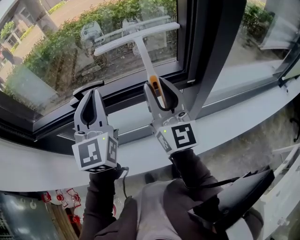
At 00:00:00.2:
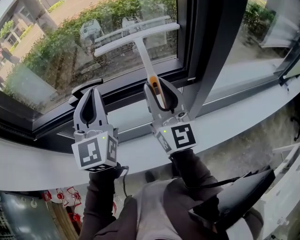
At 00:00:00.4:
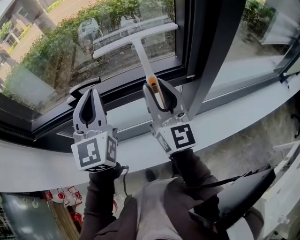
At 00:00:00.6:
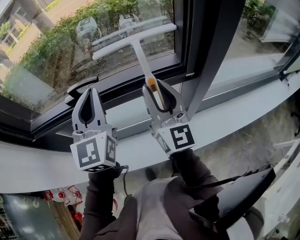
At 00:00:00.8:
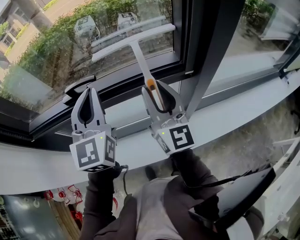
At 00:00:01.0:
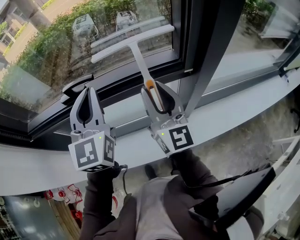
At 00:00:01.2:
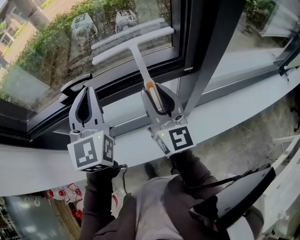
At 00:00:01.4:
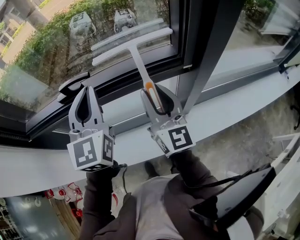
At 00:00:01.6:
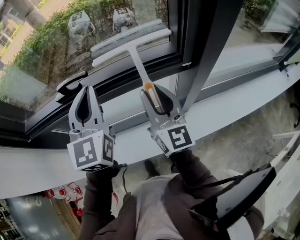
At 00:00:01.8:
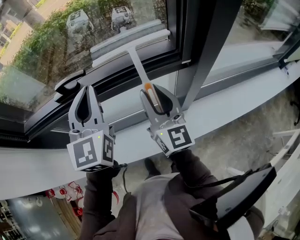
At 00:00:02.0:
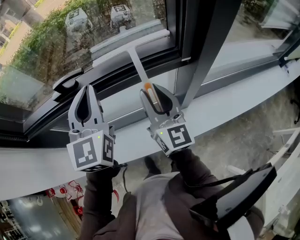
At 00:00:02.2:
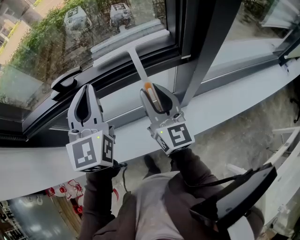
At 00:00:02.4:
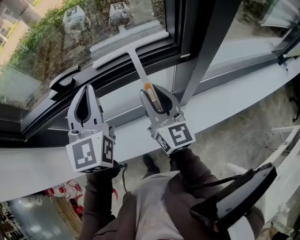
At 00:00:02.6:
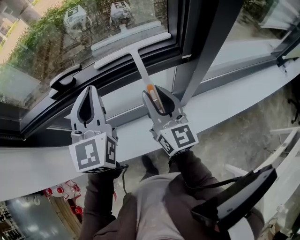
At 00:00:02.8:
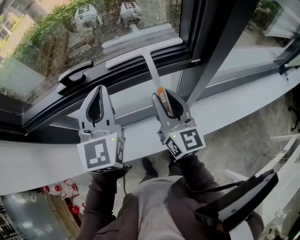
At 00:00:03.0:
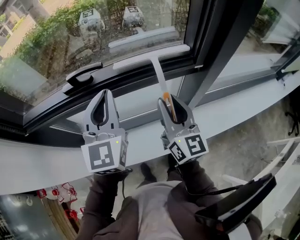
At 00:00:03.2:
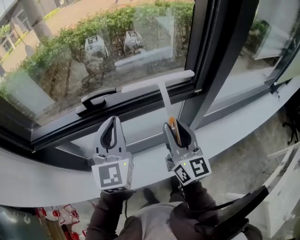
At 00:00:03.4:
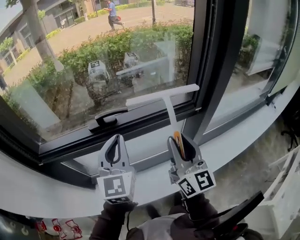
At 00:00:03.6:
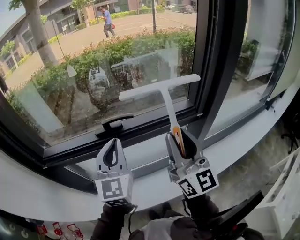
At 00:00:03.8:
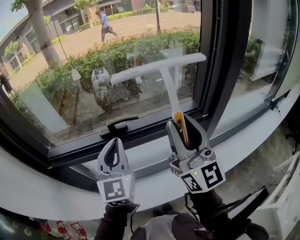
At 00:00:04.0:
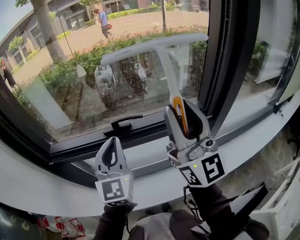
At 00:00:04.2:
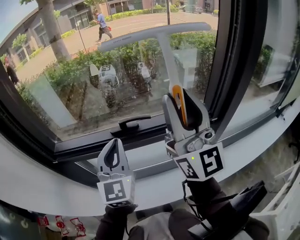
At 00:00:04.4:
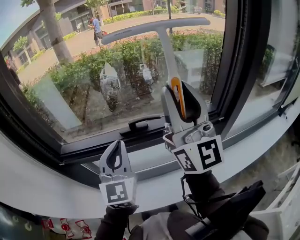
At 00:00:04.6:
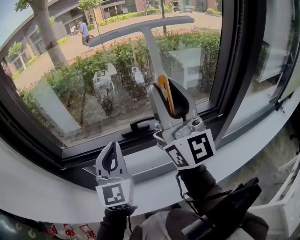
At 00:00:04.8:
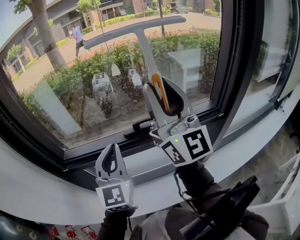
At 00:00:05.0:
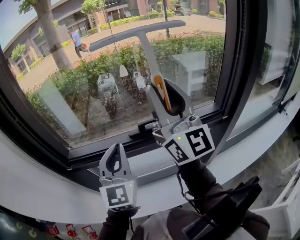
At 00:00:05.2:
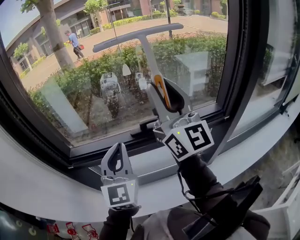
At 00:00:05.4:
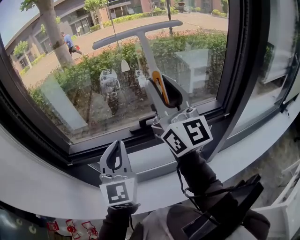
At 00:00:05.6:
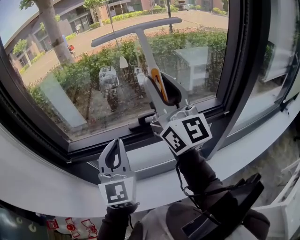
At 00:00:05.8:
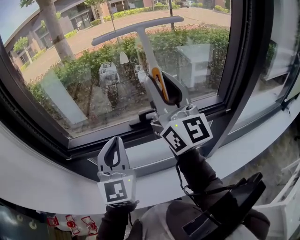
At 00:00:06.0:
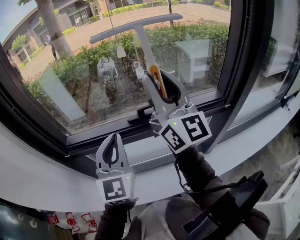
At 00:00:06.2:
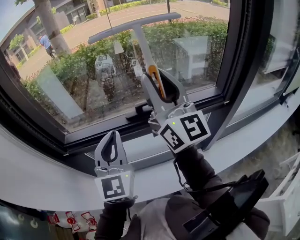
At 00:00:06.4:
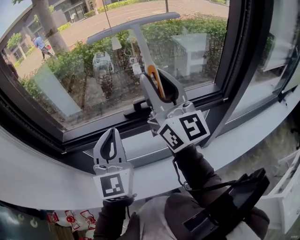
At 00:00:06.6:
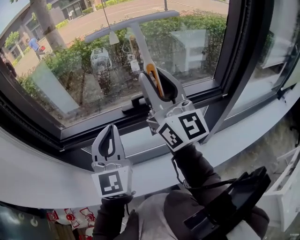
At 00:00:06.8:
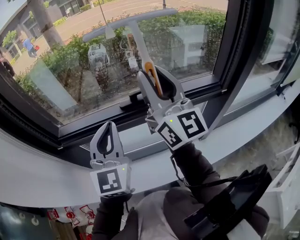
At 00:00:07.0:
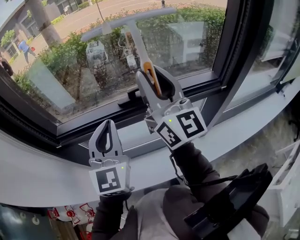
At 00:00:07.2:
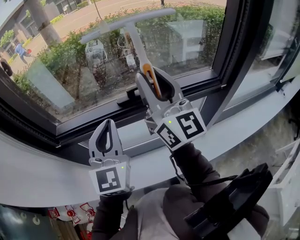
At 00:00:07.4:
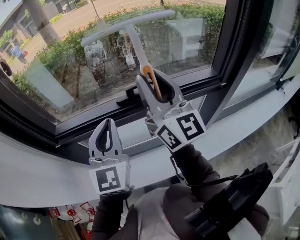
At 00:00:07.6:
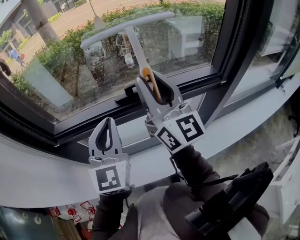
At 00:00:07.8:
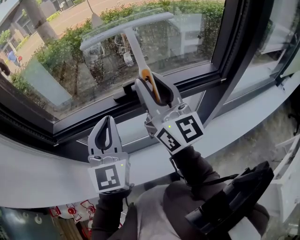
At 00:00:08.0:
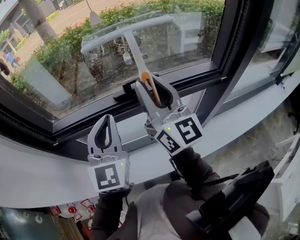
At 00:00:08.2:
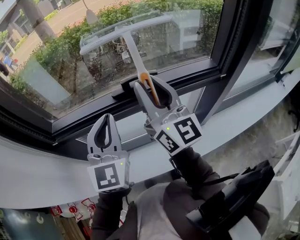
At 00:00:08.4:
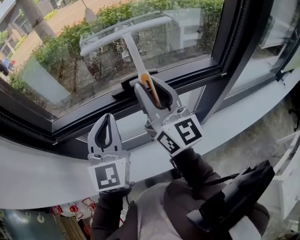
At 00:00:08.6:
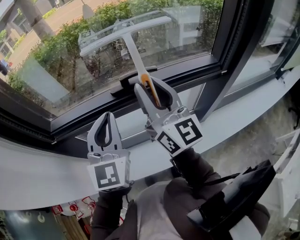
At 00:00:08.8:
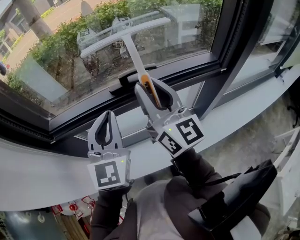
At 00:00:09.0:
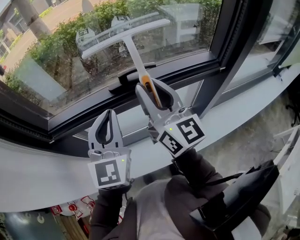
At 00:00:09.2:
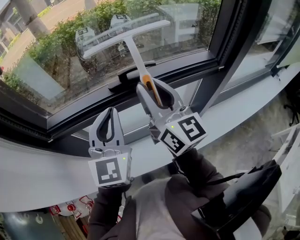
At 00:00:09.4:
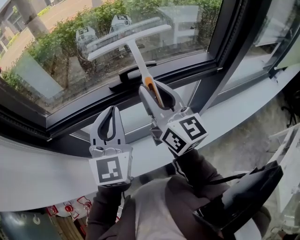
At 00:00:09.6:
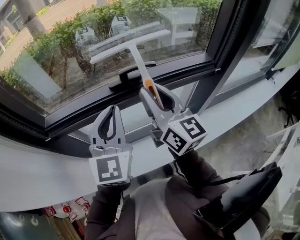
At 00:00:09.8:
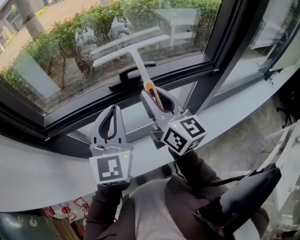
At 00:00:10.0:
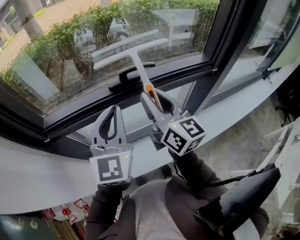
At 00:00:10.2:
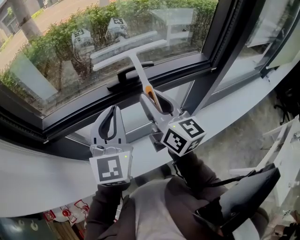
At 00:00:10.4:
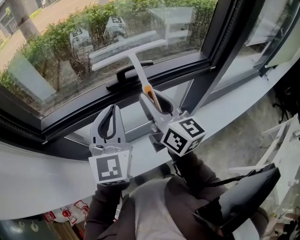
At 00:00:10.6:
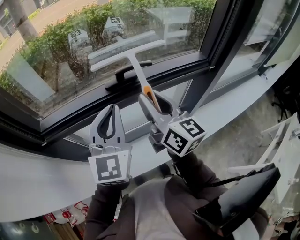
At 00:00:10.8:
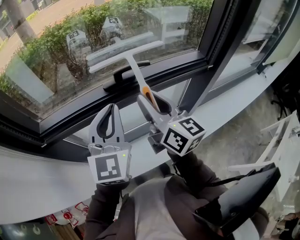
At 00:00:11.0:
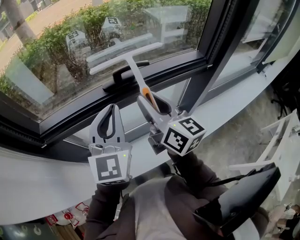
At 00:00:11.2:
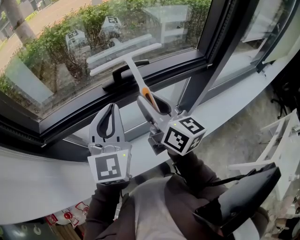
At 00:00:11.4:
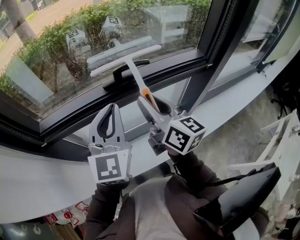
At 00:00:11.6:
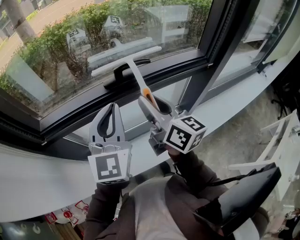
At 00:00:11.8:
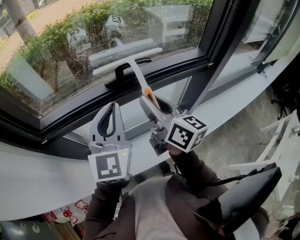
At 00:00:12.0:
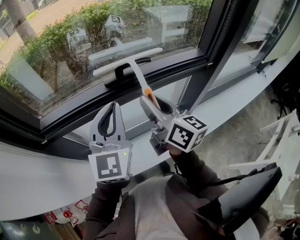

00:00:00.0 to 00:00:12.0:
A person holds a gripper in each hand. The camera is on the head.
00:00:00.0 to 00:00:01.6: The right gripper heads downward, covering about 10 cm.
00:00:01.6 to 00:00:03.0: The grippers make only small movements.
00:00:03.0 to 00:00:04.4: The left gripper shifts approximately 15 cm to the left. Meanwhile the right gripper shifts about 35 cm upward and to the left, and tilts its fingers some 30 degrees upward.
00:00:04.4 to 00:00:06.0: The right gripper shifts roughly 5 cm to the left.
00:00:06.0 to 00:00:07.6: The right gripper goes approximately 10 cm downward.
00:00:07.6 to 00:00:09.0: The right gripper travels downward by roughly 5 cm.
00:00:09.0 to 00:00:10.4: There are only small adjustments of the grippers.
00:00:10.4 to 00:00:12.0: The grippers stay close to where they were, moving slightly.

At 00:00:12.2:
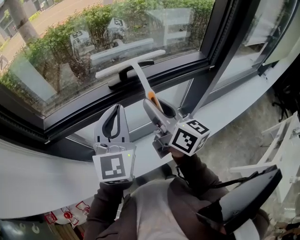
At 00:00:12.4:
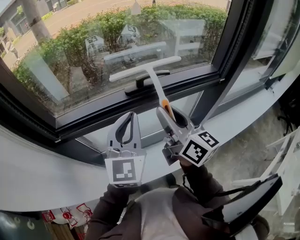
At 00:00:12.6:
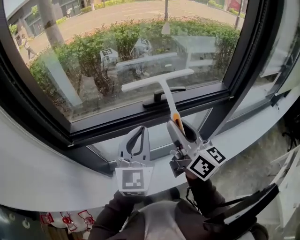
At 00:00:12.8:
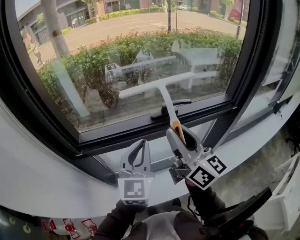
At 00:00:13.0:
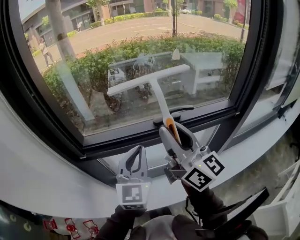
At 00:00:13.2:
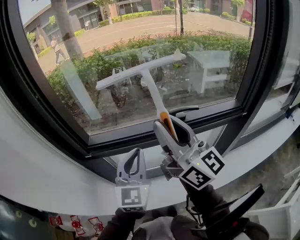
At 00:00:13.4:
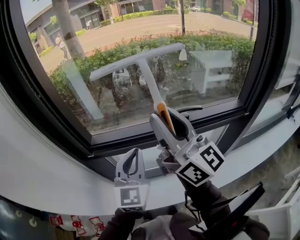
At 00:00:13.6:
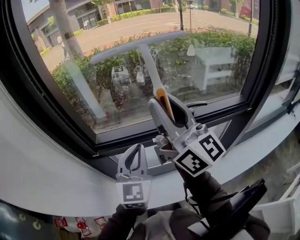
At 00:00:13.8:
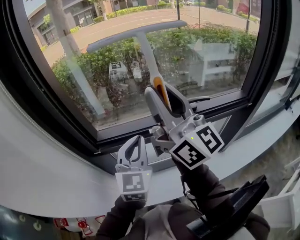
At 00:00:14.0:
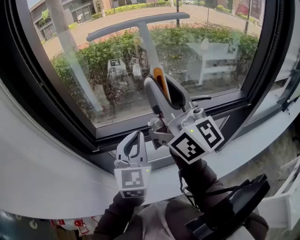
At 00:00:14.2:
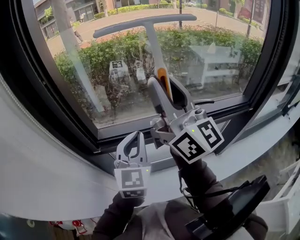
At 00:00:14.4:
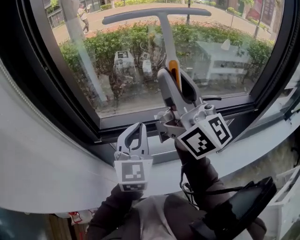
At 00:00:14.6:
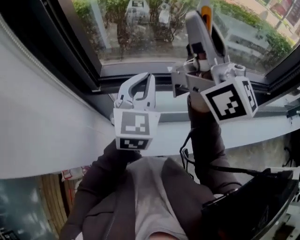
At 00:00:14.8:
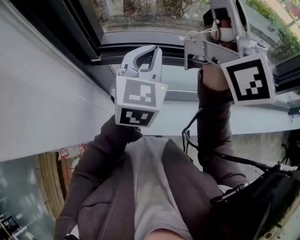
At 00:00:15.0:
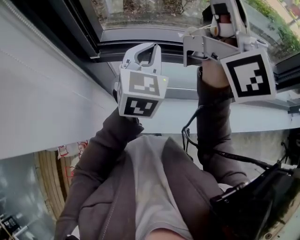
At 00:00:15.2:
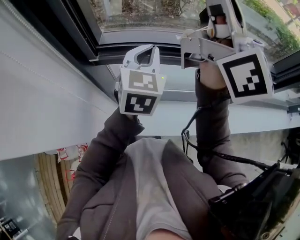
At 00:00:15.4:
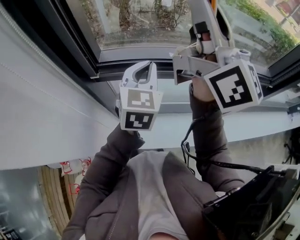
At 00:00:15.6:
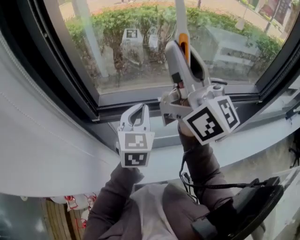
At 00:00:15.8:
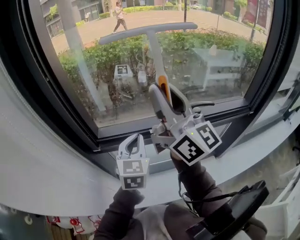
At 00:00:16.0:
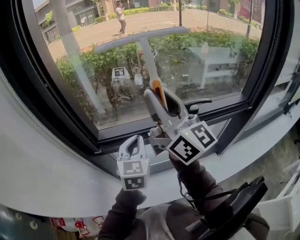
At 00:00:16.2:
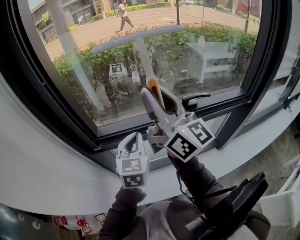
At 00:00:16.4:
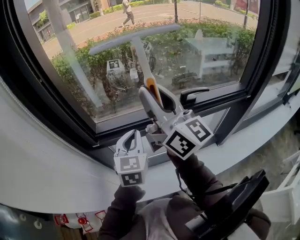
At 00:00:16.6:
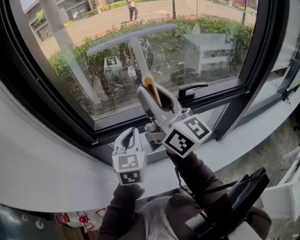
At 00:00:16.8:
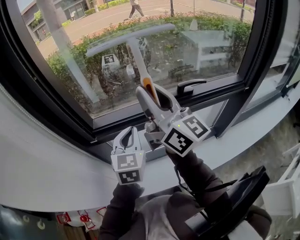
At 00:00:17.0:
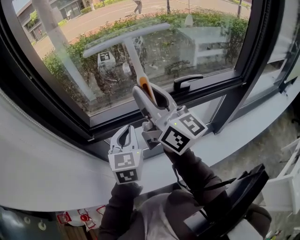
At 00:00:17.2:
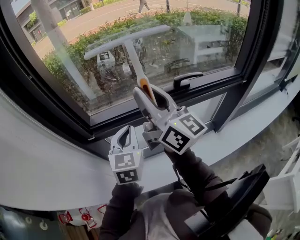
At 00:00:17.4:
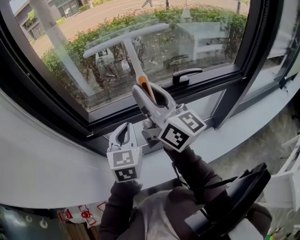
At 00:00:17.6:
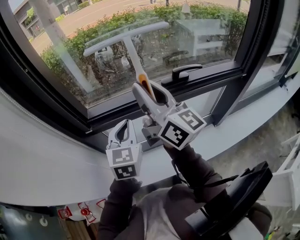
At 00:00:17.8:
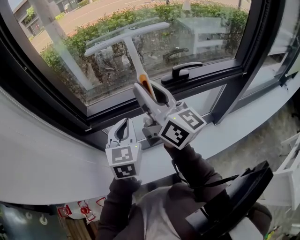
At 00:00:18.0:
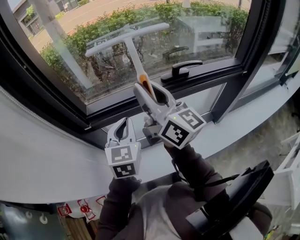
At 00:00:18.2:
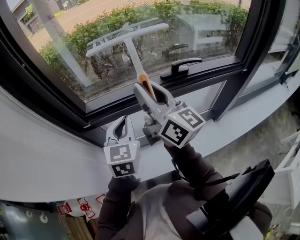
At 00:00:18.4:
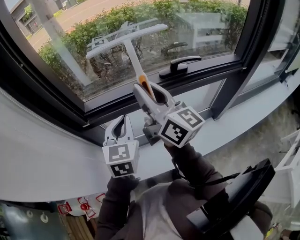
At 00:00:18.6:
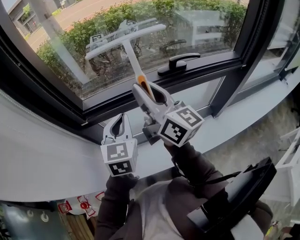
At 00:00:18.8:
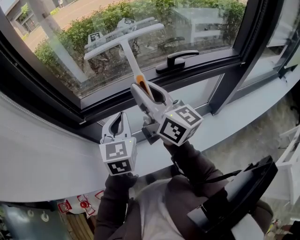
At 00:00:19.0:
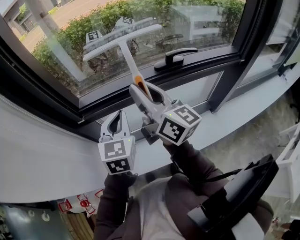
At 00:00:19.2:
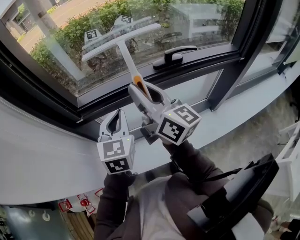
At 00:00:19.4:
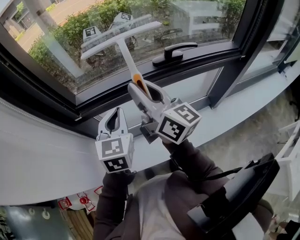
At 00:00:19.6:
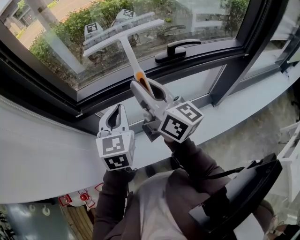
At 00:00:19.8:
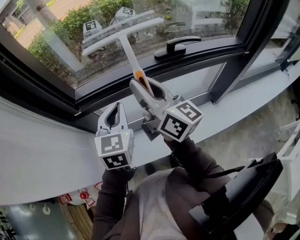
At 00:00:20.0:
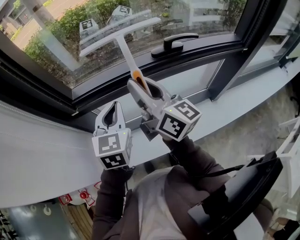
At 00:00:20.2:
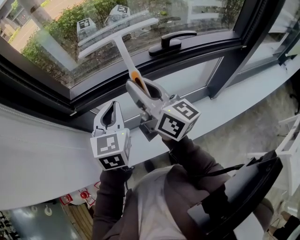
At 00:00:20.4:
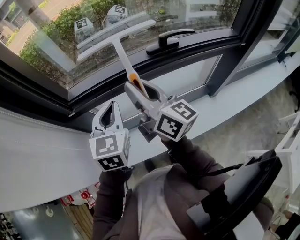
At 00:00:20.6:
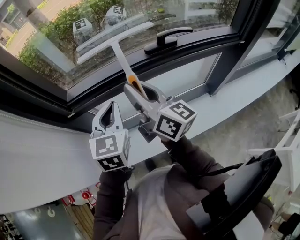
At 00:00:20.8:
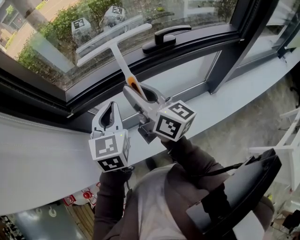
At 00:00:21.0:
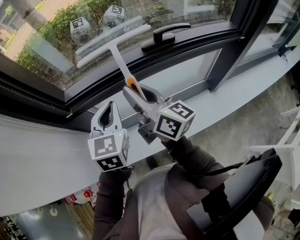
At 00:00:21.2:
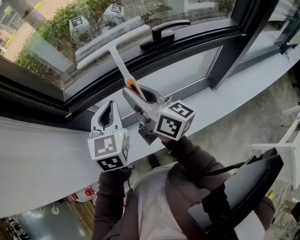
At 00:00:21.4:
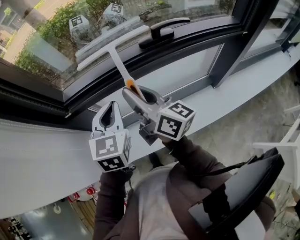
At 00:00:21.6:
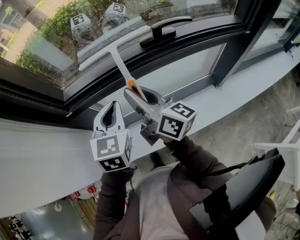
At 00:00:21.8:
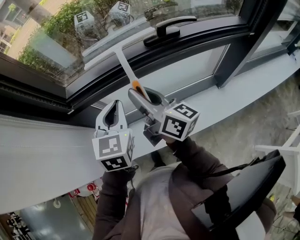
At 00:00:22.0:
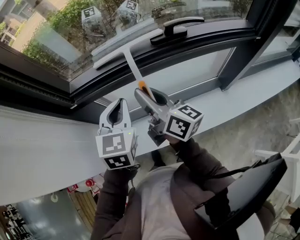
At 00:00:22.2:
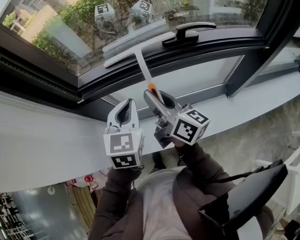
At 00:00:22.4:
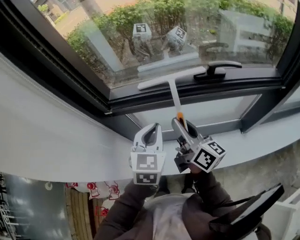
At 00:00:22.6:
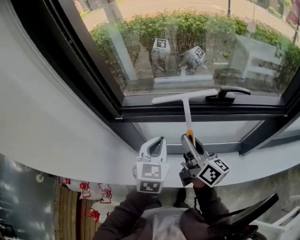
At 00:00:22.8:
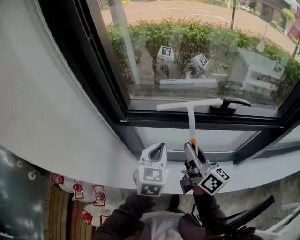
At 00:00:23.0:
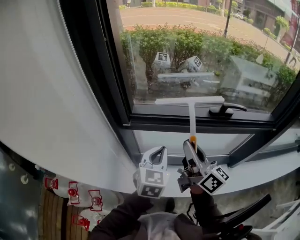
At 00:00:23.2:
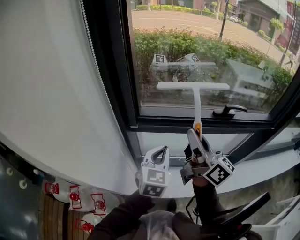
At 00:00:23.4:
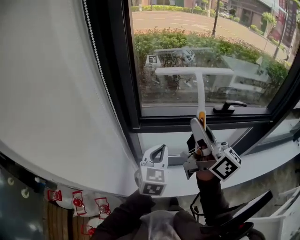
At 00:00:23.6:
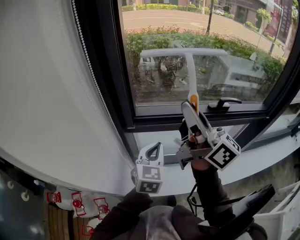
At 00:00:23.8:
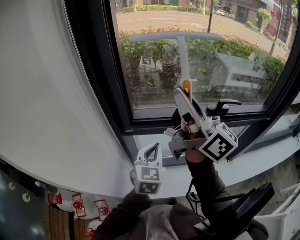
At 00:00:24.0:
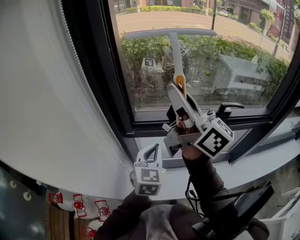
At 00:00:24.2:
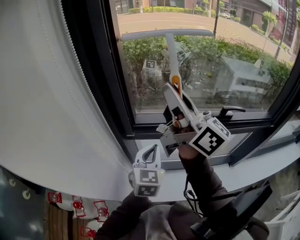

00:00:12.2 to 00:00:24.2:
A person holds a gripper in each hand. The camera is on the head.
00:00:12.2 to 00:00:13.8: The right gripper heads upward and to the left, covering roughly 25 cm, and changes its angle by roughly 30 degrees. The left gripper shifts roughly 15 cm to the left.
00:00:13.8 to 00:00:15.2: The left gripper shifts approximately 10 cm downward and forward.
00:00:15.2 to 00:00:16.6: The right gripper shifts roughly 5 cm downward.
00:00:16.6 to 00:00:18.2: The right gripper moves downward, some 5 cm.
00:00:18.2 to 00:00:19.8: The right gripper travels downward by about 5 cm.
00:00:19.8 to 00:00:21.2: The right gripper heads downward, covering roughly 5 cm.
00:00:21.2 to 00:00:22.6: The grippers make only small movements.
00:00:22.6 to 00:00:24.2: The left gripper is displaced to the left by some 10 cm. Meanwhile the right gripper goes some 30 cm upward and to the left, and swivels some 30 degrees.
